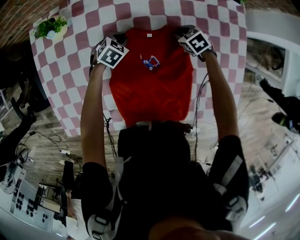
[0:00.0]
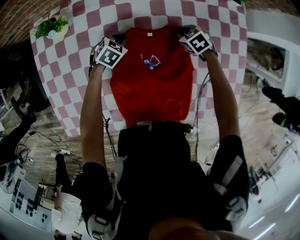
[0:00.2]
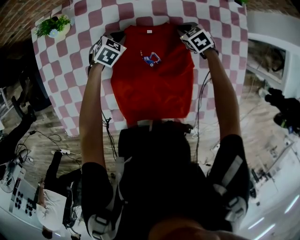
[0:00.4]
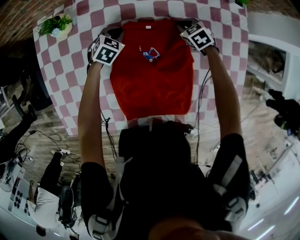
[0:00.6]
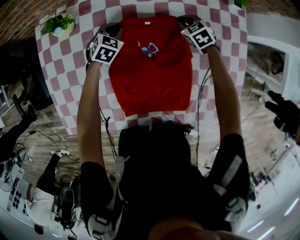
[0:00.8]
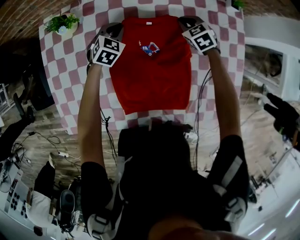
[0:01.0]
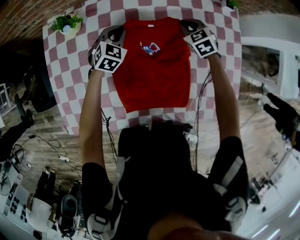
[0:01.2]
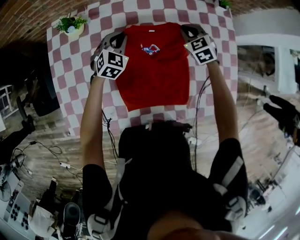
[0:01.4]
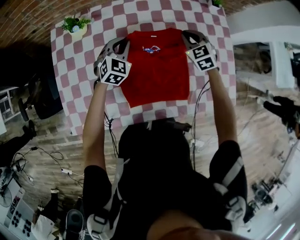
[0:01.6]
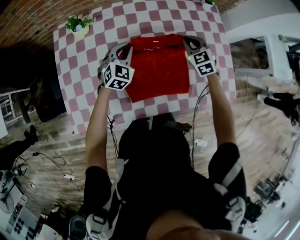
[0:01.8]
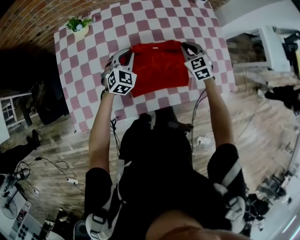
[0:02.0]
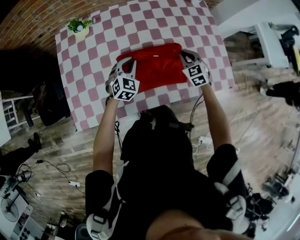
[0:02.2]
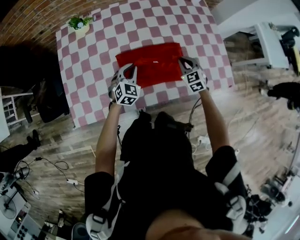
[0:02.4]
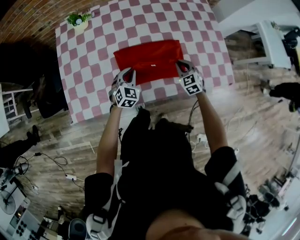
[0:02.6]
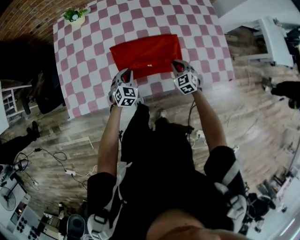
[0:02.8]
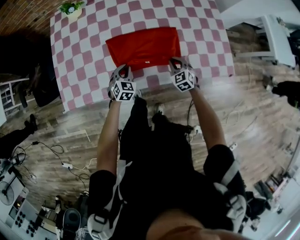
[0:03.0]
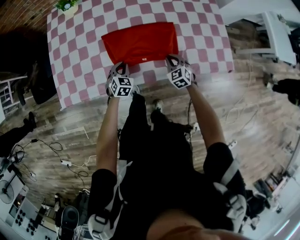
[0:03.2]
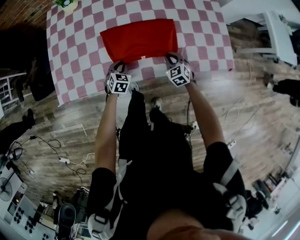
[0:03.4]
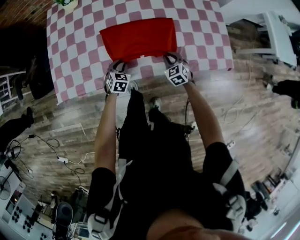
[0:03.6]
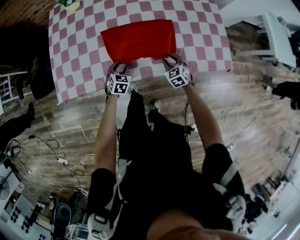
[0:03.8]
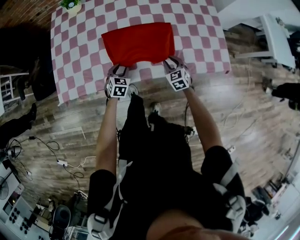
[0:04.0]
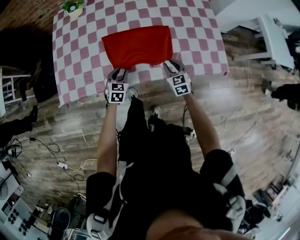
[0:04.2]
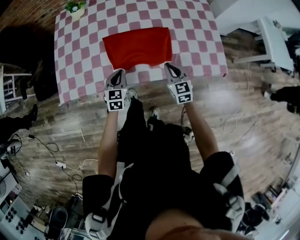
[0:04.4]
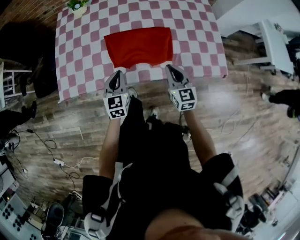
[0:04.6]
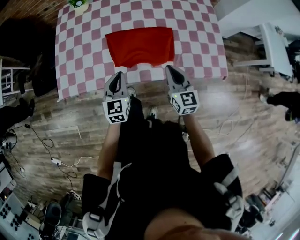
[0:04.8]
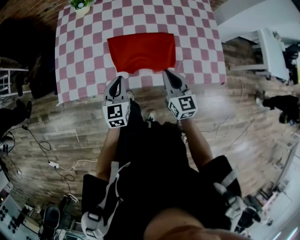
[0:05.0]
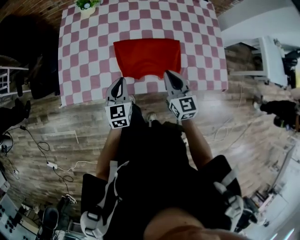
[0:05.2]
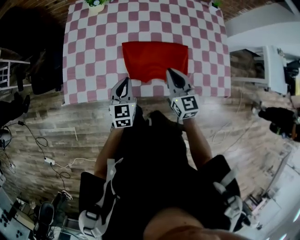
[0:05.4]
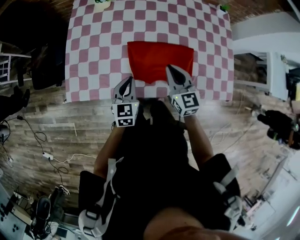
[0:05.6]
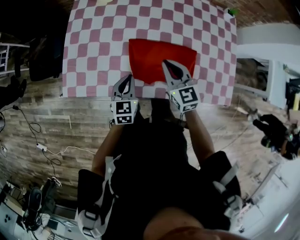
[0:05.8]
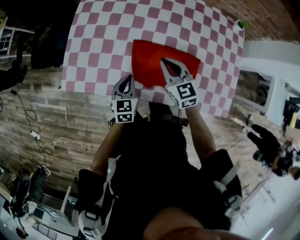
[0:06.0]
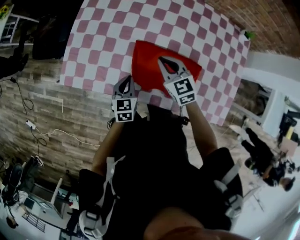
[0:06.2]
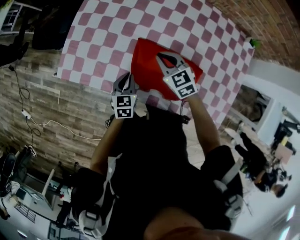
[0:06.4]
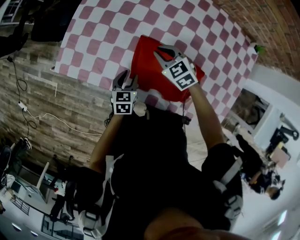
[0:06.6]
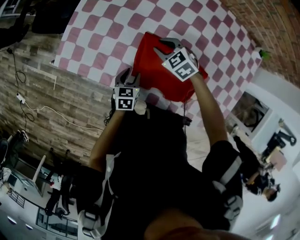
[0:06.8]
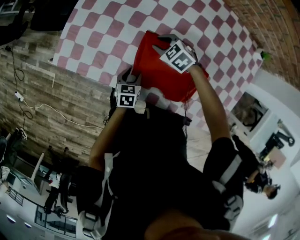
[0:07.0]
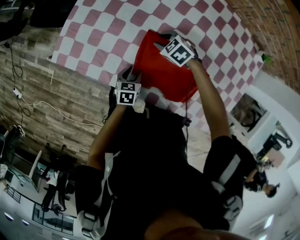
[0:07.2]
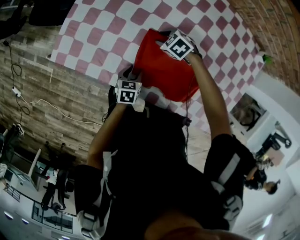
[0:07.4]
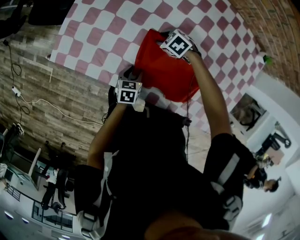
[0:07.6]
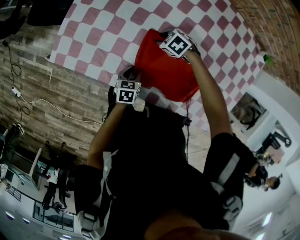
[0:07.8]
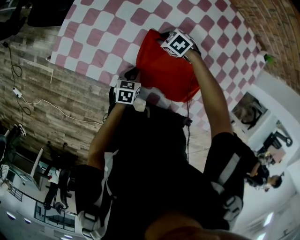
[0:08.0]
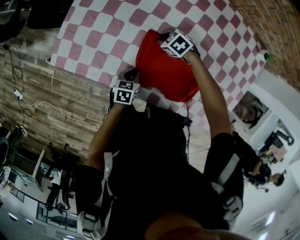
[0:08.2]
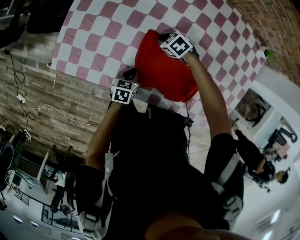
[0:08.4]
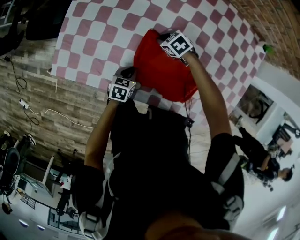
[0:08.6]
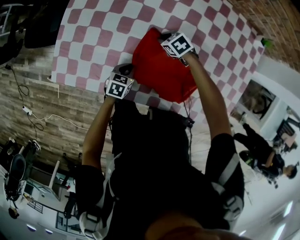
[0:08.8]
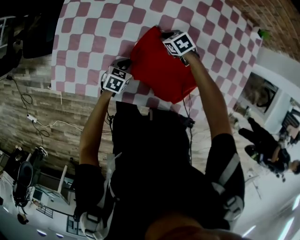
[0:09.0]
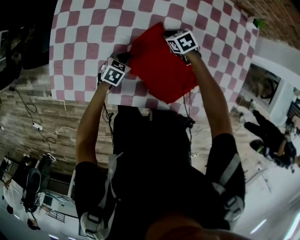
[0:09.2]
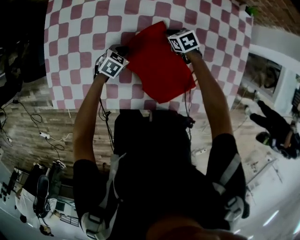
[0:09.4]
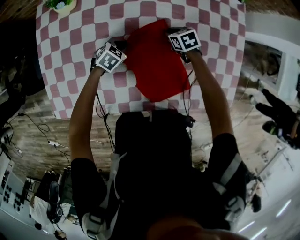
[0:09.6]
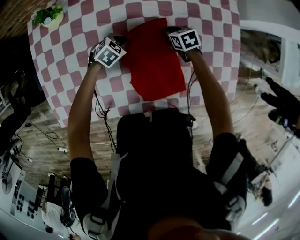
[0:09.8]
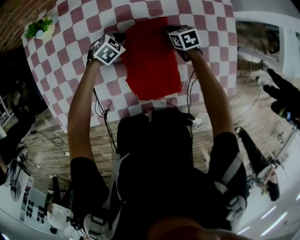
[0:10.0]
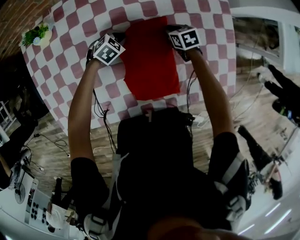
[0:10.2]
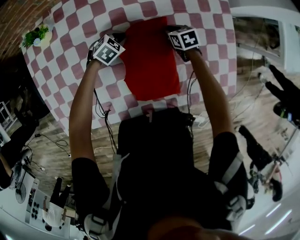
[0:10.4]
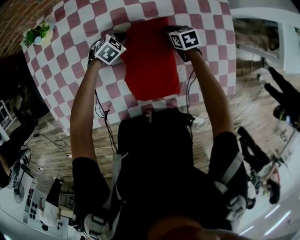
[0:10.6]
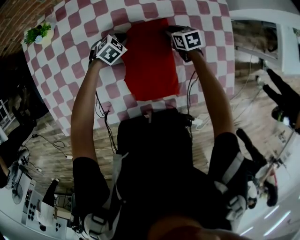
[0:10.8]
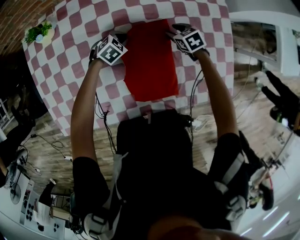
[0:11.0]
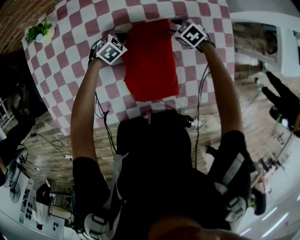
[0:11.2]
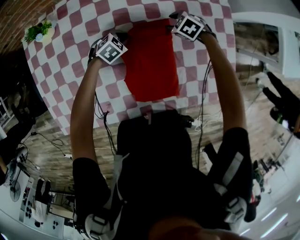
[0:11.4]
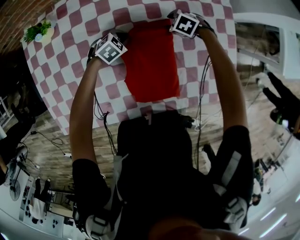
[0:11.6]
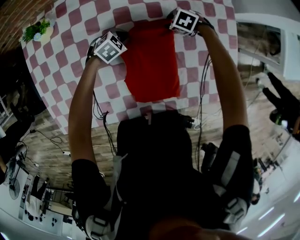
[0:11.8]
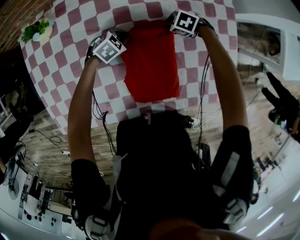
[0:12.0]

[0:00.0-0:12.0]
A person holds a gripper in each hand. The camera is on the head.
0.0 to 1.6 s: The grippers both shift upward by about 20 cm. The right gripper changes its angle by roughly 40 degrees. Meanwhile the left gripper rotates about 40 degrees.
1.6 to 3.0 s: The two grippers go roughly 35 cm backward and downward.
3.0 to 4.4 s: The grippers both shift upward and backward by approximately 10 cm. The left gripper changes its angle by roughly 20 degrees, and opens, then closes once more; the right gripper rotates some 30 degrees.
4.4 to 6.0 s: The left gripper is displaced forward and to the left by roughly 10 cm, and changes its angle by some 20 degrees. Meanwhile the right gripper shifts about 30 cm forward, to the left and upward, and swivels about 30 degrees.
6.0 to 7.6 s: The grippers both shift downward by about 20 cm. The right gripper points its fingers approximately 40 degrees further downward, and opens. The left gripper turns by about 30 degrees, and opens up.
7.6 to 9.0 s: The left gripper changes place by roughly 10 cm, rotates roughly 30 degrees, and closes. The right gripper changes place by roughly 10 cm, turns by approximately 30 degrees, and closes its fingers.
9.0 to 10.4 s: The left gripper changes place by some 30 cm, and twists some 50 degrees clockwise, seen from behind. Meanwhile the right gripper shifts by roughly 30 cm, and changes its angle by some 40 degrees.
10.4 to 12.0 s: The right gripper twists about 50 degrees counterclockwise, seen from behind, and opens and closes again.

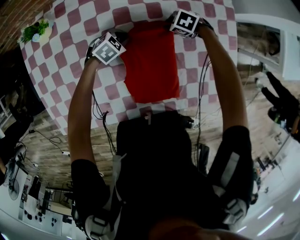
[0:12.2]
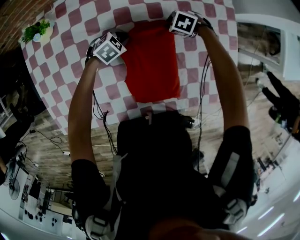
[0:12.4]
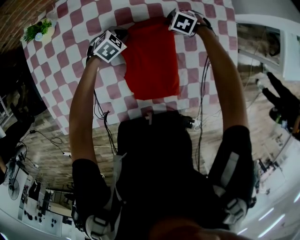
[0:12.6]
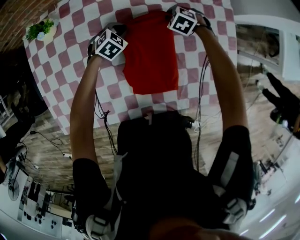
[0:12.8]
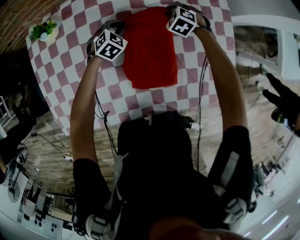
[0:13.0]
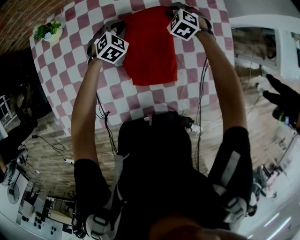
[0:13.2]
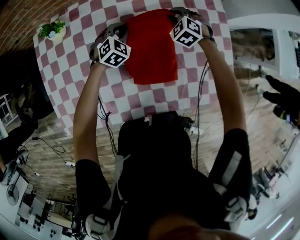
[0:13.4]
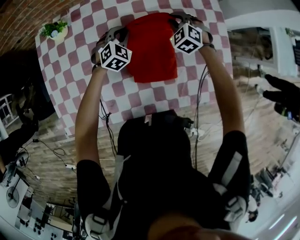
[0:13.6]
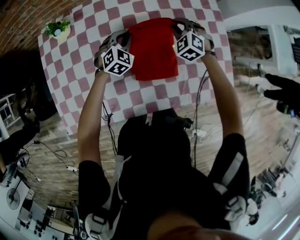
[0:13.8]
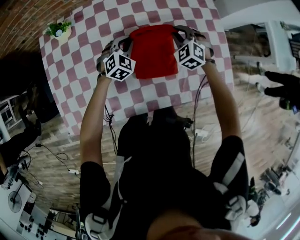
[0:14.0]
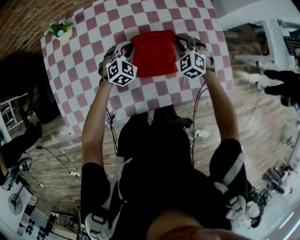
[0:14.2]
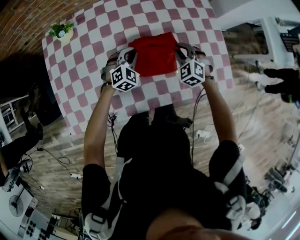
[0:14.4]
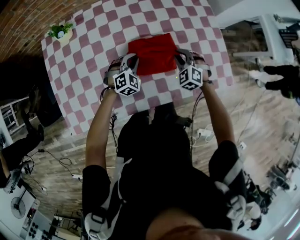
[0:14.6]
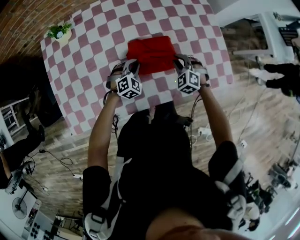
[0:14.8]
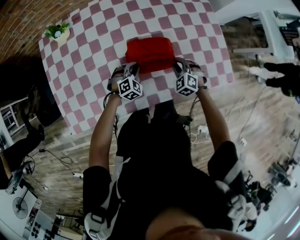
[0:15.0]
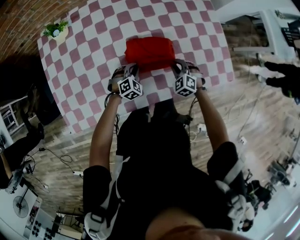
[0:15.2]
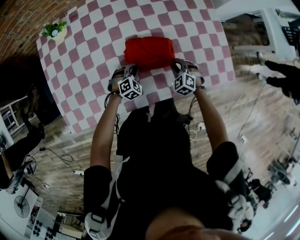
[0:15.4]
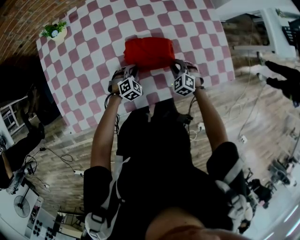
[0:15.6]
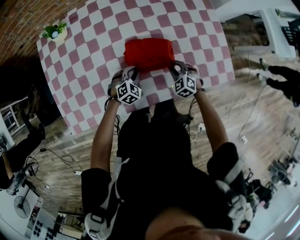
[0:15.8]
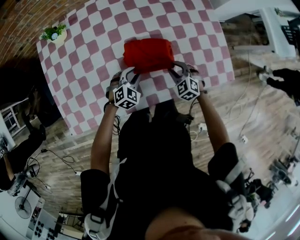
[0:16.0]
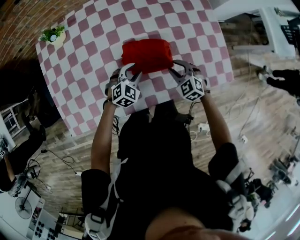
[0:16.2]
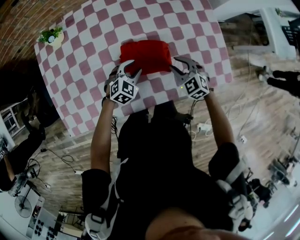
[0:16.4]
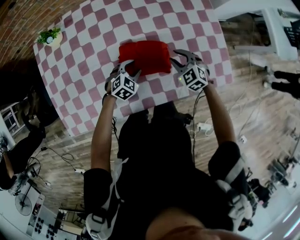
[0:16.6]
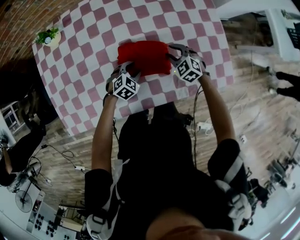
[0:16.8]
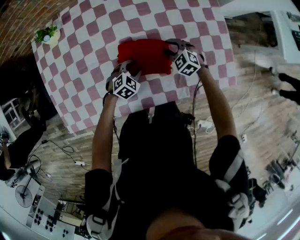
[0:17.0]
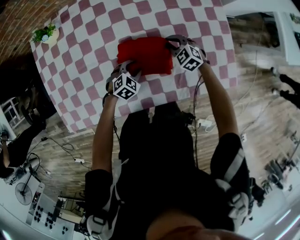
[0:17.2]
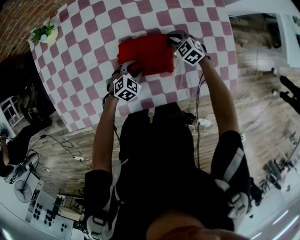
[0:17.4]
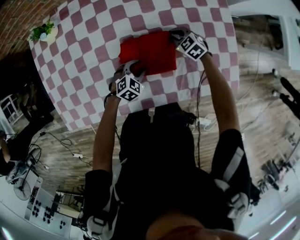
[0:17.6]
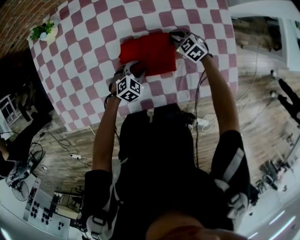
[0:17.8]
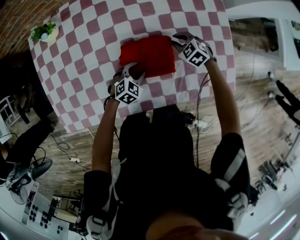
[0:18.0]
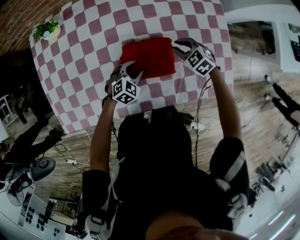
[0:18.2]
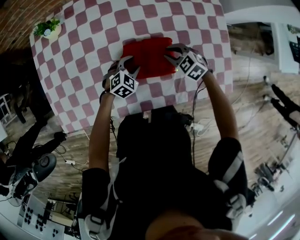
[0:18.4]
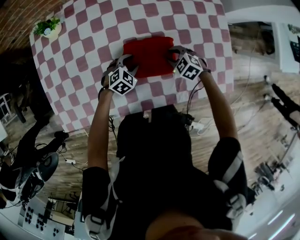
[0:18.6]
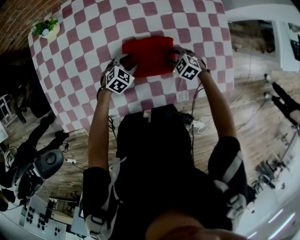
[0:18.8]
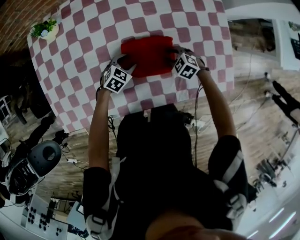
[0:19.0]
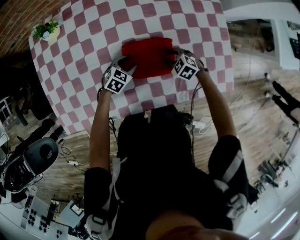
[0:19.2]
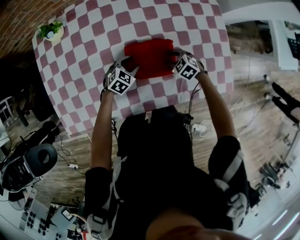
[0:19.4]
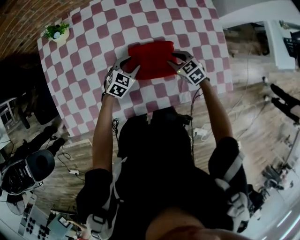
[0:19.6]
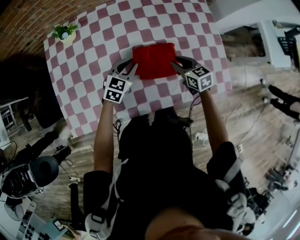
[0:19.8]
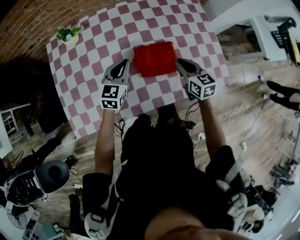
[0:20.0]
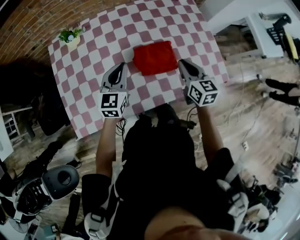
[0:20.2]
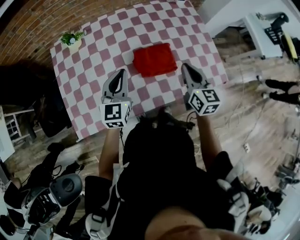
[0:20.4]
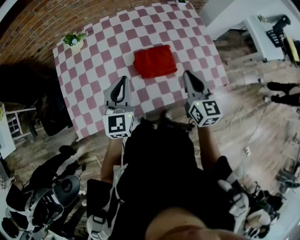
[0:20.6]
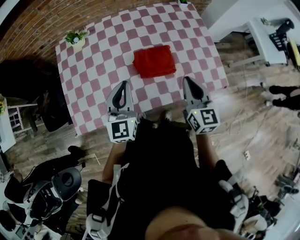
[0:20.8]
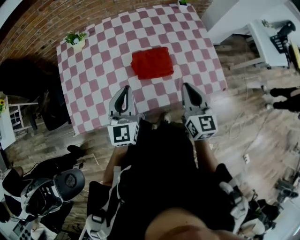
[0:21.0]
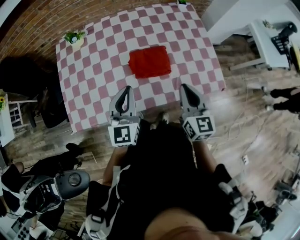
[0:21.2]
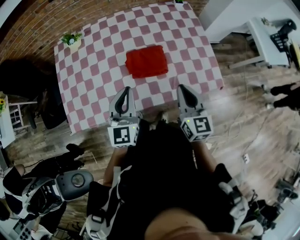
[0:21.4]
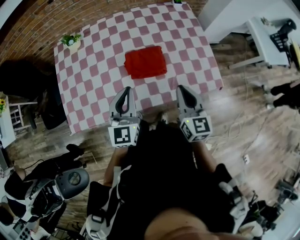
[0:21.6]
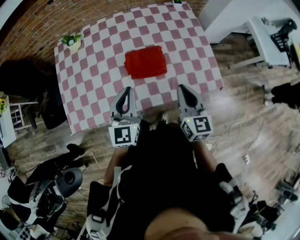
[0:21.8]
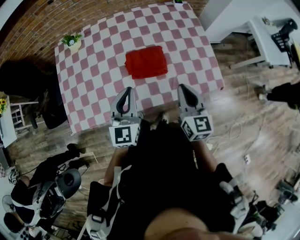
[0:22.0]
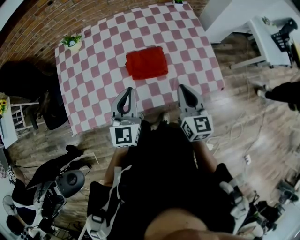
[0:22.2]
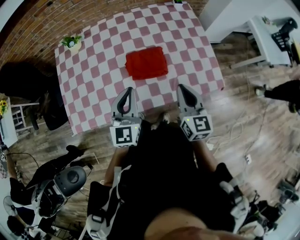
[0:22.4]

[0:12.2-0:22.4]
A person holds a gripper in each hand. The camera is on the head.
12.2 to 13.6 s: Both grippers move upward, roughly 15 cm. The left gripper swivels about 40 degrees. The right gripper changes its angle by some 50 degrees.
13.6 to 15.2 s: The left gripper heads backward and downward, covering approximately 25 cm. The right gripper moves backward, some 30 cm.
15.2 to 16.6 s: The right gripper moves forward and upward, about 10 cm; the left gripper shifts by some 5 cm, and opens up.
16.6 to 18.0 s: The right gripper moves forward and downward, some 15 cm.
18.0 to 19.4 s: The left gripper ends up some 5 cm from where it was. The right gripper shifts some 10 cm backward, and reaches roughly 5 cm upward, then returns.
19.4 to 21.0 s: Both grippers travel together upward and backward, roughly 40 cm. The right gripper tips its fingers upward by approximately 50 degrees, and closes up; the left gripper angles its fingers upward, by some 40 degrees, and closes up.
21.0 to 22.4 s: The left gripper is displaced to the right by some 5 cm.

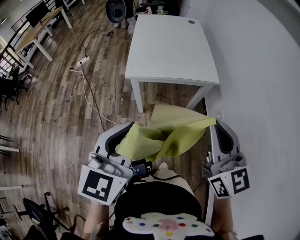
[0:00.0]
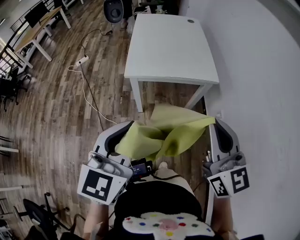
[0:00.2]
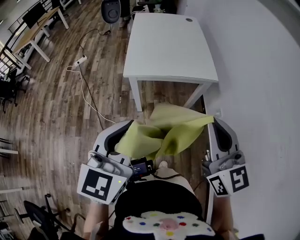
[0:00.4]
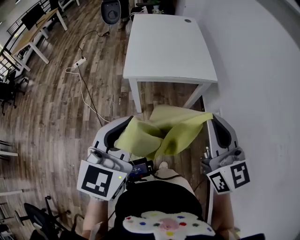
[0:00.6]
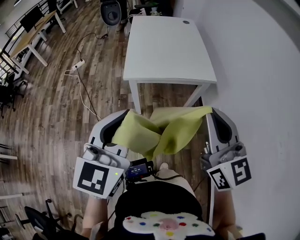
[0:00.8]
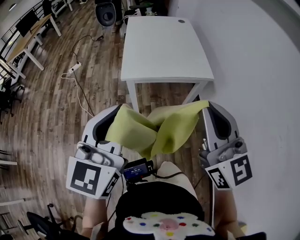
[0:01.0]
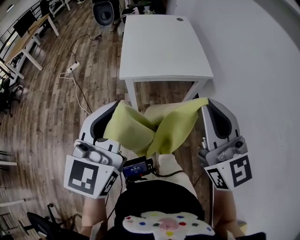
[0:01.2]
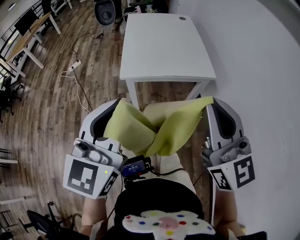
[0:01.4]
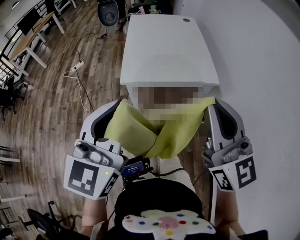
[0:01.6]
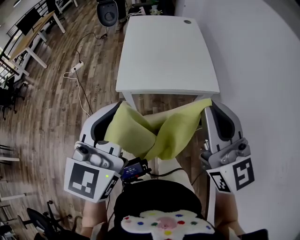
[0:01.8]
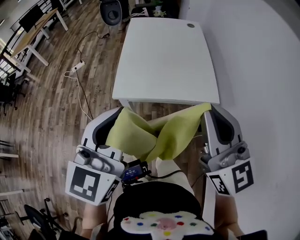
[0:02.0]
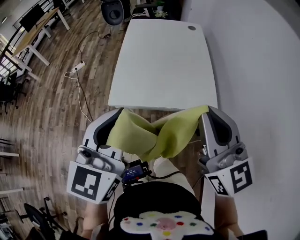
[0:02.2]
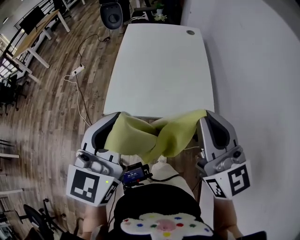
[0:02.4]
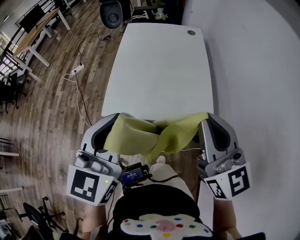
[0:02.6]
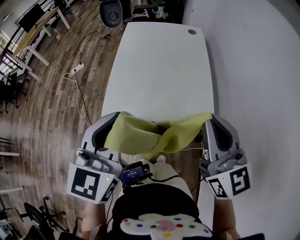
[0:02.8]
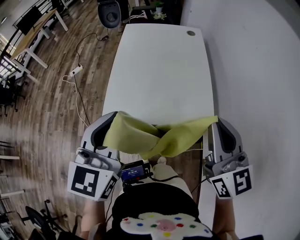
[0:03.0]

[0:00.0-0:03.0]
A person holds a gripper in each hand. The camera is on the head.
0.0 to 1.6 s: The two grippers go some 5 cm forward.
1.6 to 3.0 s: Both grippers move forward and to the right, approximately 25 cm.
